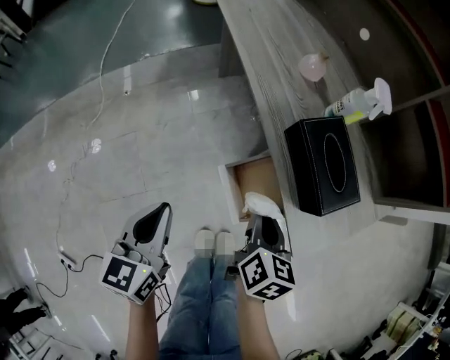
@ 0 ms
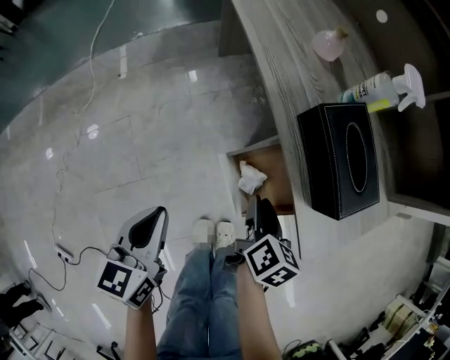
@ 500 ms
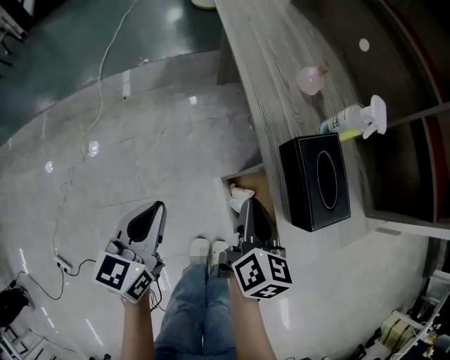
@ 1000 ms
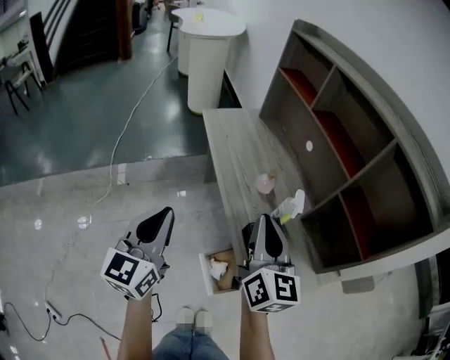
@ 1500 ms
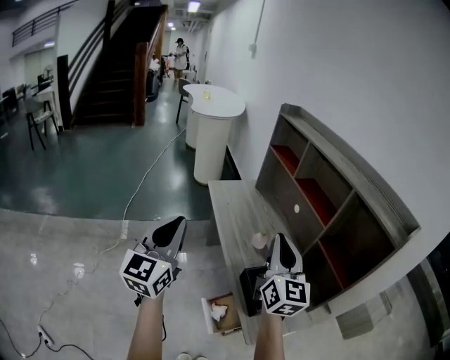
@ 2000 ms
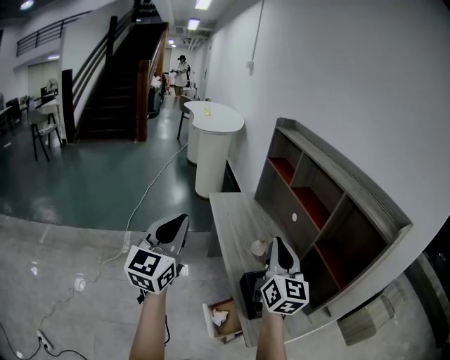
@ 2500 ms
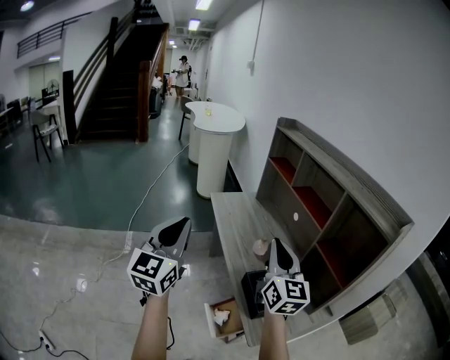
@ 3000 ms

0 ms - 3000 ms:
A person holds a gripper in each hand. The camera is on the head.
0 ms - 1500 ms: The right gripper goes roughly 35 cm upward, tilts its fingers about 30 degrees upward, and opens, then closes again. The left gripper is displaced upward and forward by approximately 30 cm, and swivels some 30 degrees.
1500 ms - 3000 ms: The right gripper heads upward and backward, covering roughly 15 cm. Meanwhile the left gripper goes about 20 cm upward.

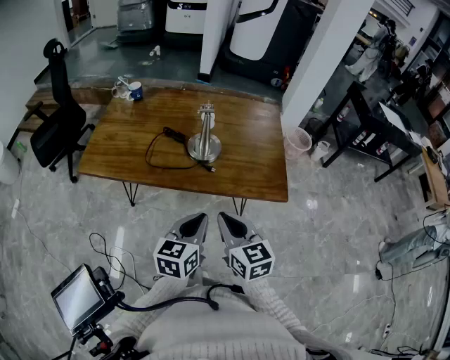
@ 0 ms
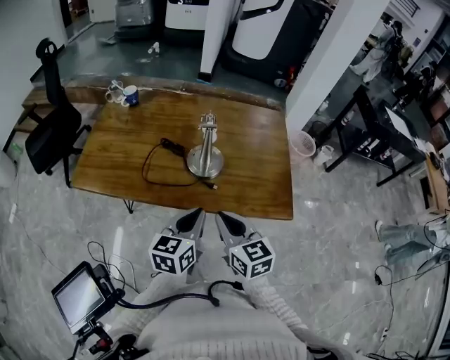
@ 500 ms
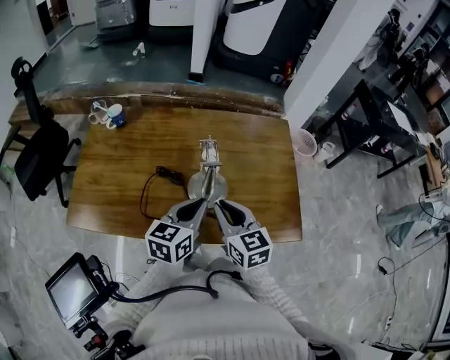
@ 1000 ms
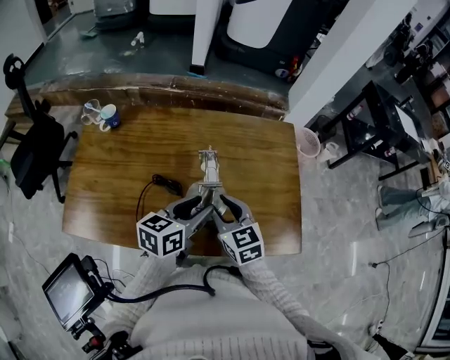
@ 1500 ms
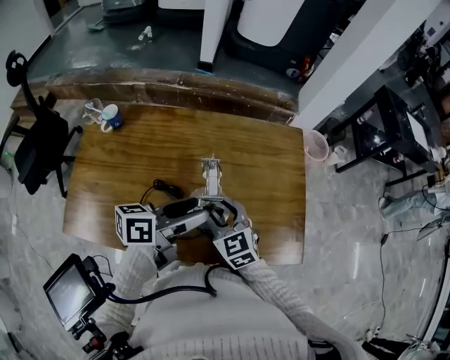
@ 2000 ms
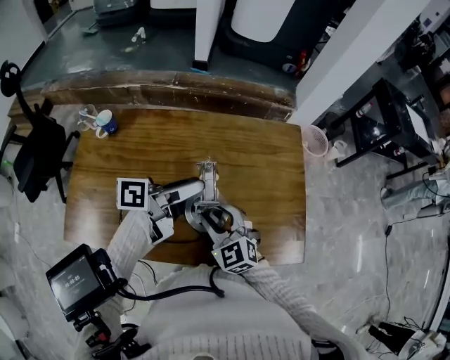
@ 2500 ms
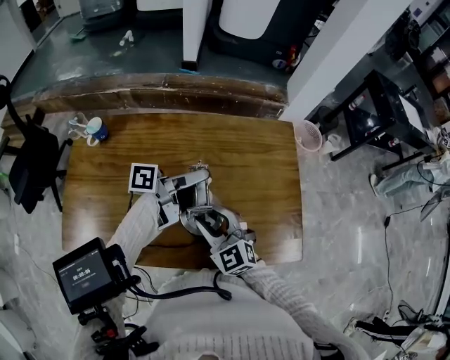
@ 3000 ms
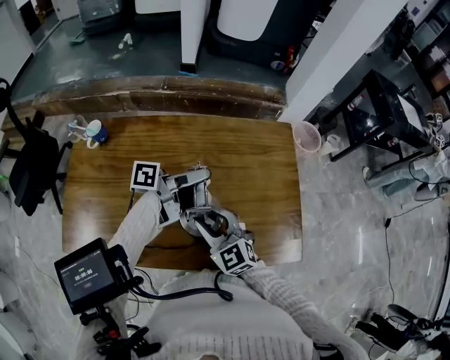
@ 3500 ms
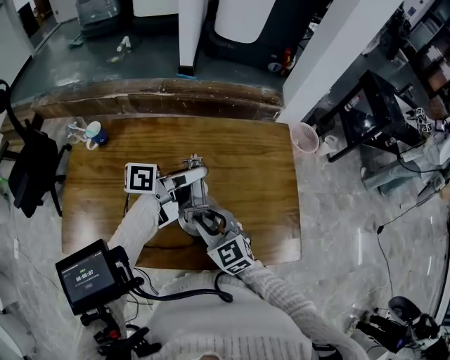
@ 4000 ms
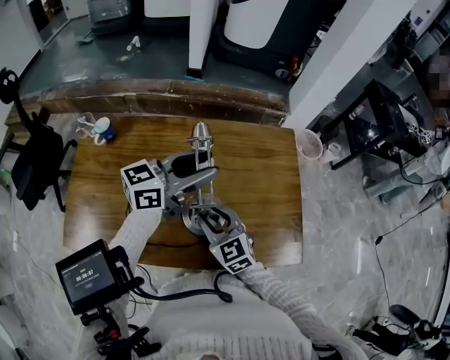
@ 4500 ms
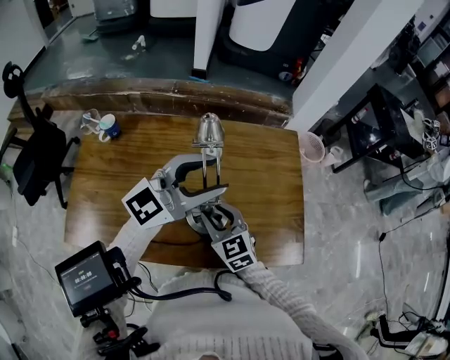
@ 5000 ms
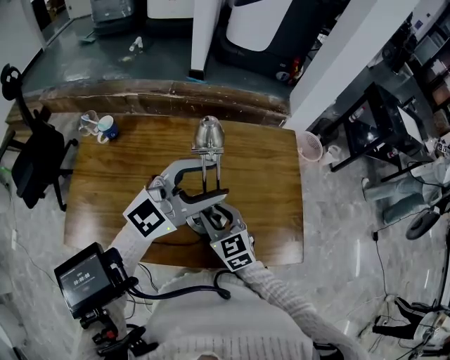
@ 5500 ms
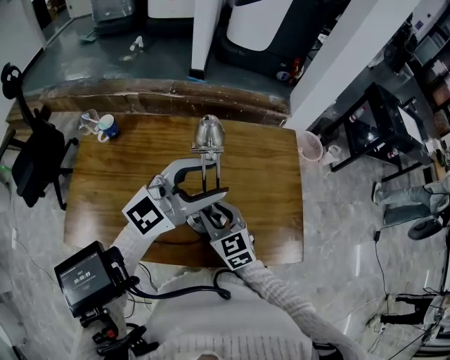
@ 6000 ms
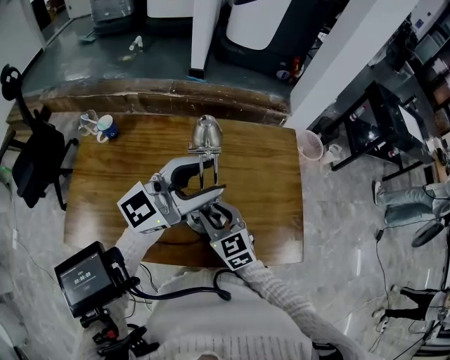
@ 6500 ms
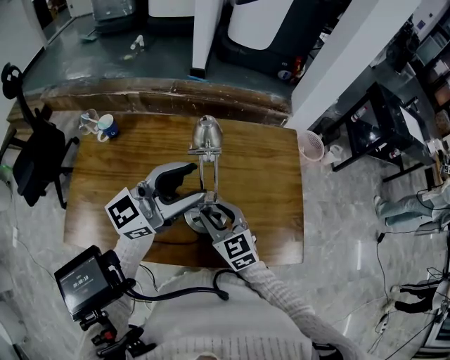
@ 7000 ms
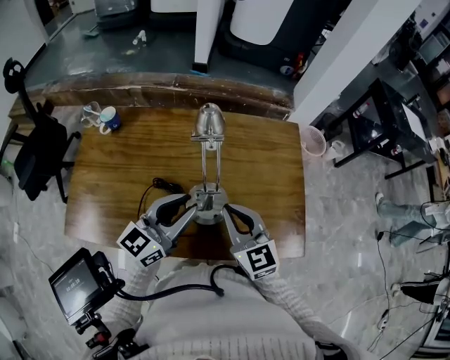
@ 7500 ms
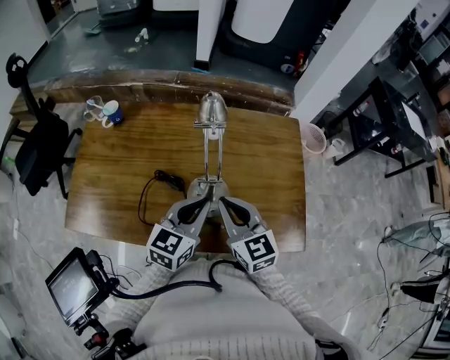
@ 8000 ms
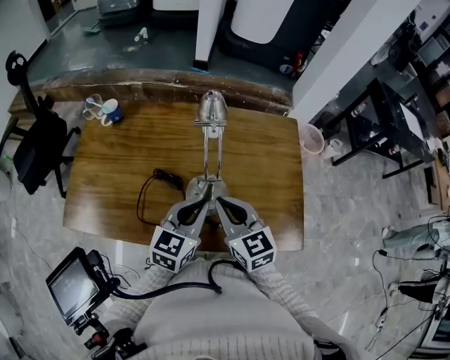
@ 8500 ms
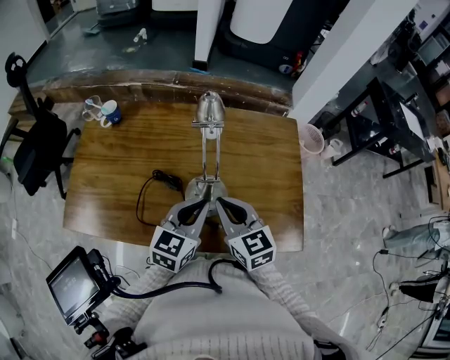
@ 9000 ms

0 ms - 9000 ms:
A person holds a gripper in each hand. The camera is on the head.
0 ms - 2000 ms: The grippers both shift forward by some 30 cm. The left gripper changes its angle by approximately 40 degrees, and opens. Meanwhile the right gripper turns by about 20 degrees, and opens its fingers.
2000 ms - 4500 ms: The left gripper heads forward and upward, covering roughly 15 cm, and turns by about 30 degrees.
4500 ms - 7000 ms: The left gripper moves backward, roughly 10 cm, and changes its angle by about 20 degrees.
7000 ms - 9000 ms: The left gripper is displaced downward and backward by about 15 cm, tilts its fingers approximately 30 degrees downward, and closes up. The right gripper moves some 5 cm, and closes.

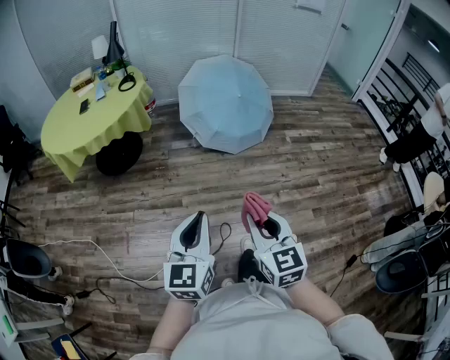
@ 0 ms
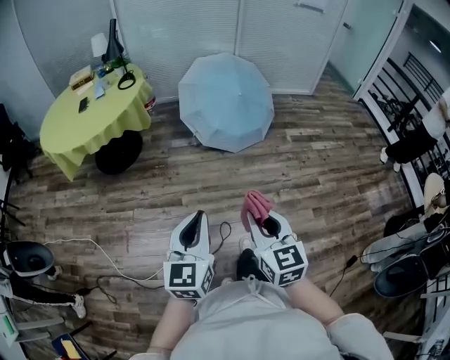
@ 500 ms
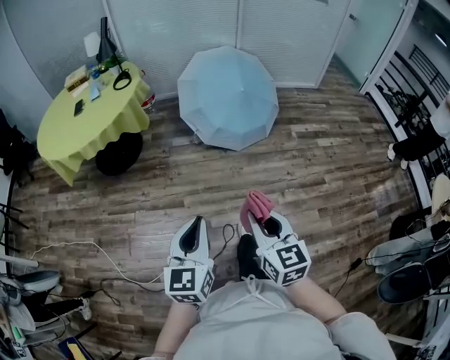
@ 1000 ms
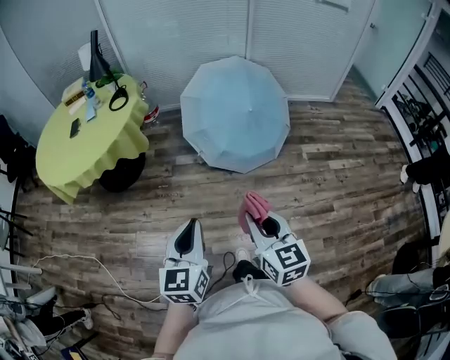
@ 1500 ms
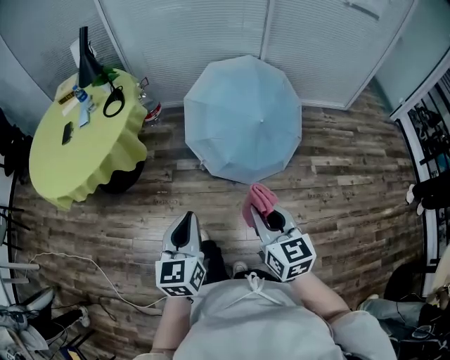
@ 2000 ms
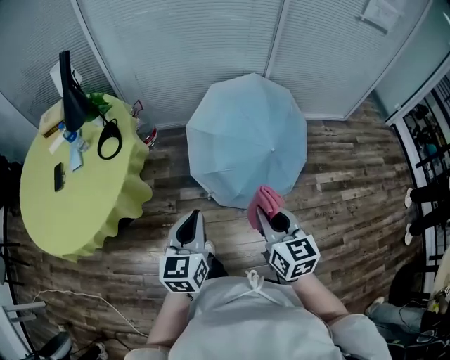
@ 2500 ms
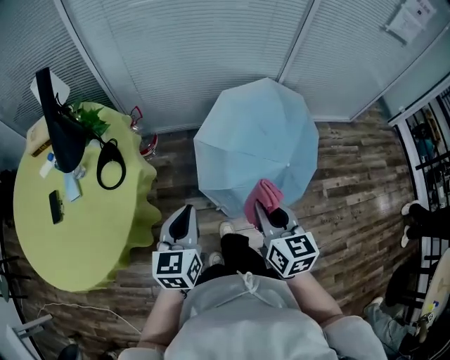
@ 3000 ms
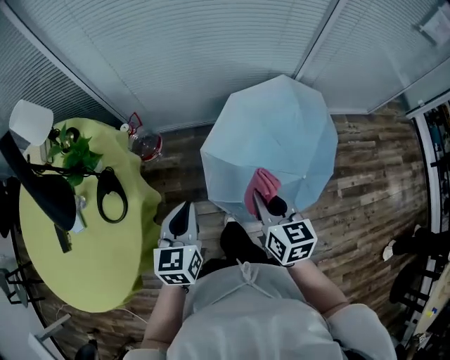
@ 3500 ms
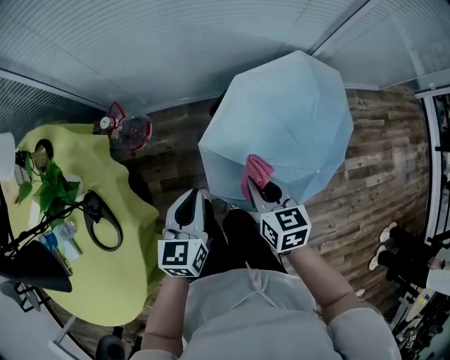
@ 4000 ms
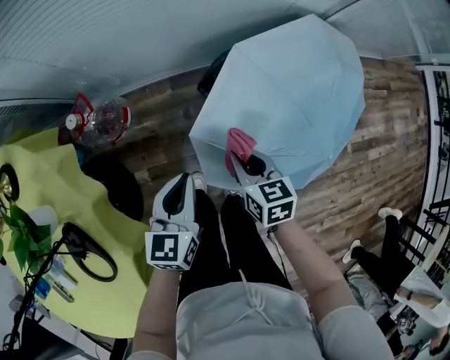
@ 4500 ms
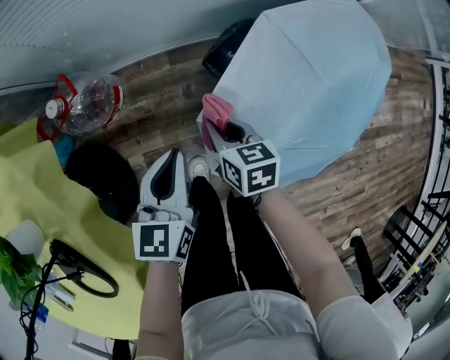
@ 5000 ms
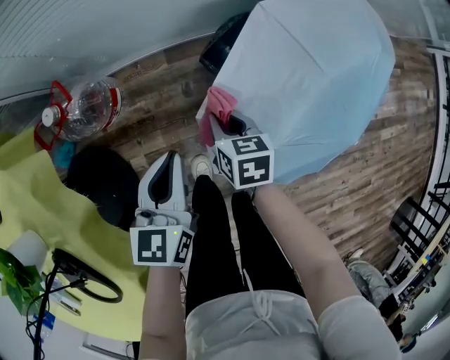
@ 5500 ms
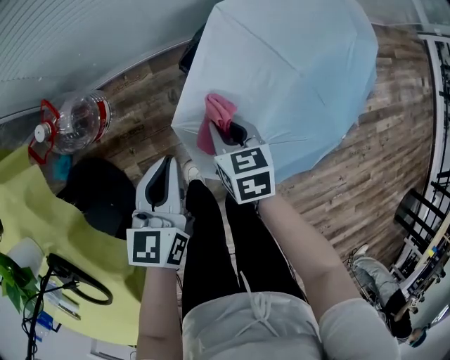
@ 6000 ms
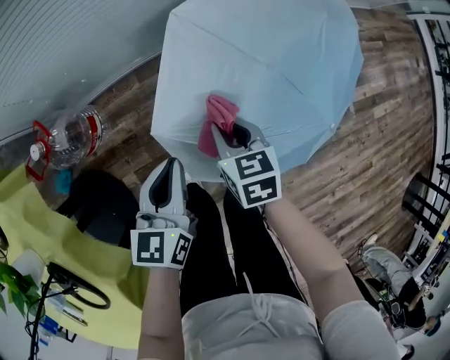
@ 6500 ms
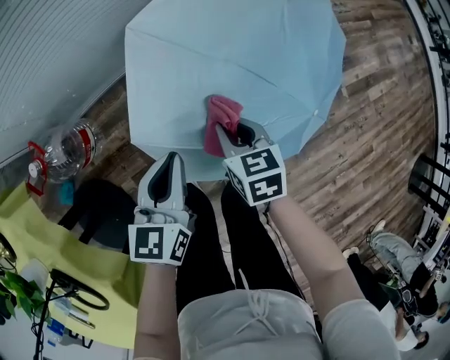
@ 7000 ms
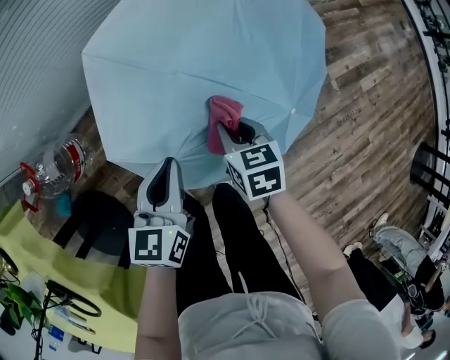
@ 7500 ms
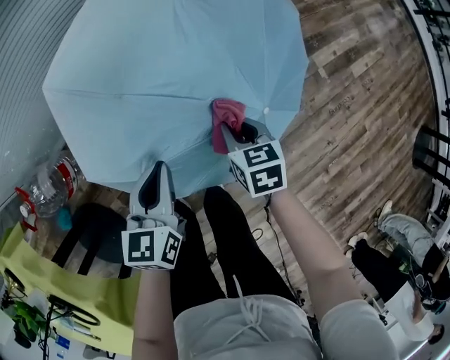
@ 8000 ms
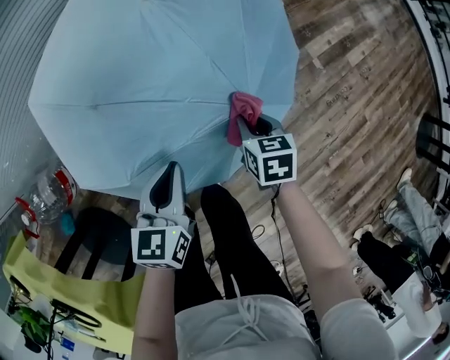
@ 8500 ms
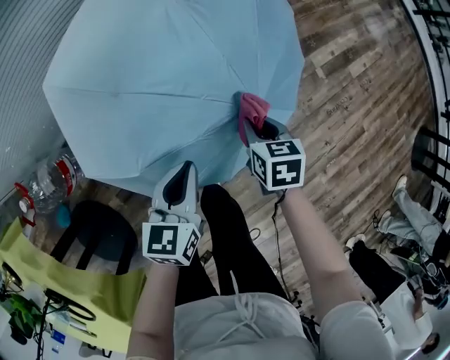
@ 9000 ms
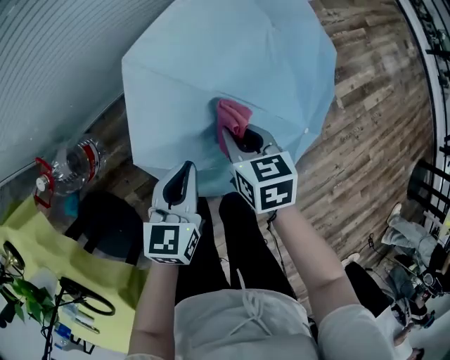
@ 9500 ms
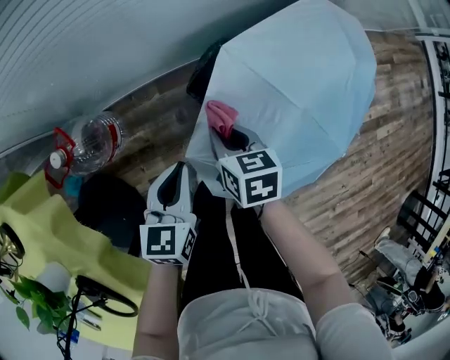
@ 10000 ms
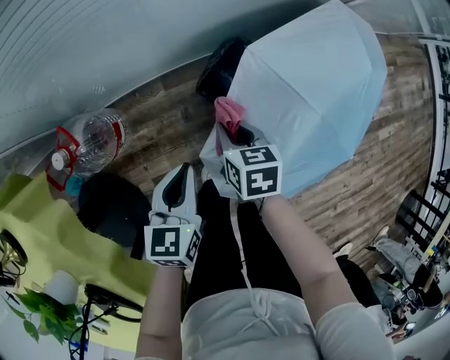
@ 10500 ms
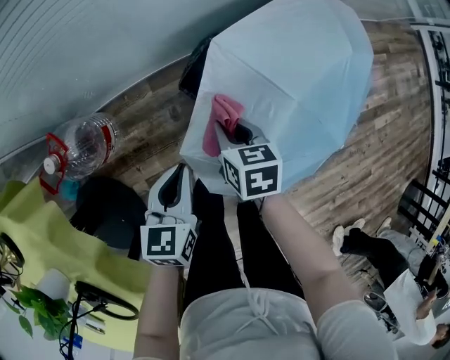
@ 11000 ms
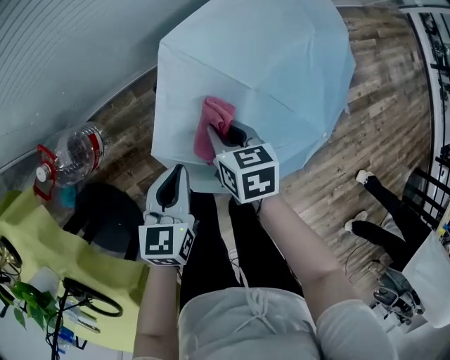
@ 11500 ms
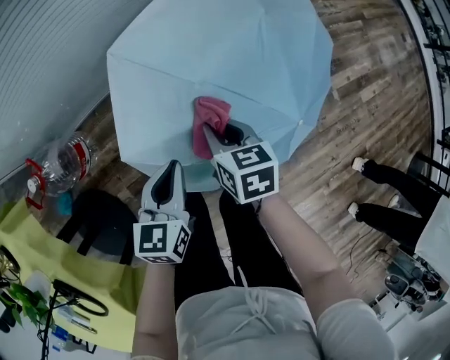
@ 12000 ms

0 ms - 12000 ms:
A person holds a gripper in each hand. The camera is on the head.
0 ms - 2000 ms: The pair of grippers is taken forward, roughly 50 cm.
2000 ms - 4000 ms: The two grippers travel together, forward, about 80 cm. The right gripper rotates roughly 30 degrees. Meanwhile the left gripper rotates some 20 degrees.
4000 ms - 6000 ms: The grippers both shift downward and forward by approximately 25 cm.
6000 ms - 8000 ms: Both grippers move to the right, approximately 30 cm.
8000 ms - 10000 ms: The left gripper shifts by about 30 cm; the right gripper ends up roughly 40 cm from where it was.
10000 ms - 12000 ms: Both grippers move to the right, roughly 20 cm.

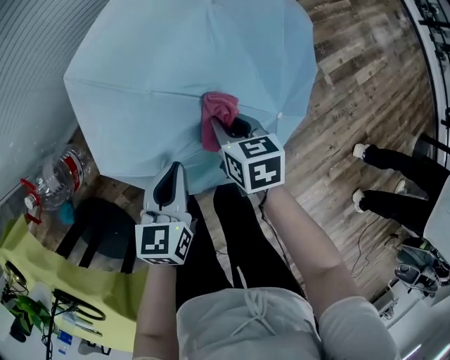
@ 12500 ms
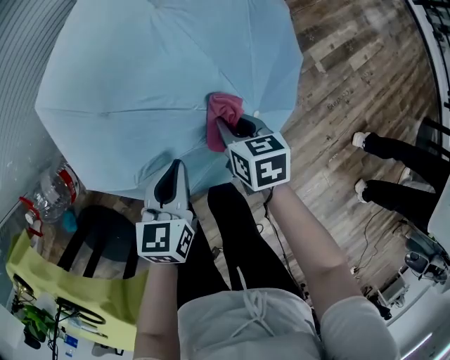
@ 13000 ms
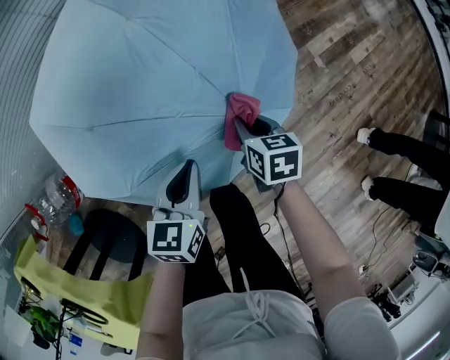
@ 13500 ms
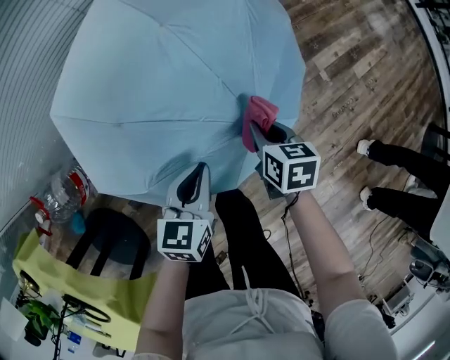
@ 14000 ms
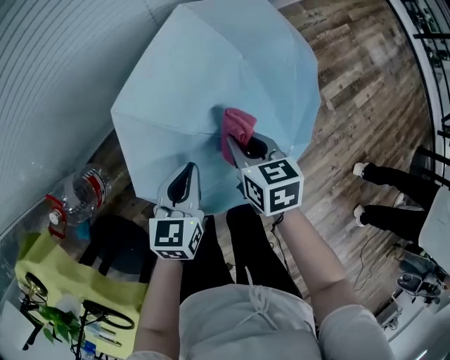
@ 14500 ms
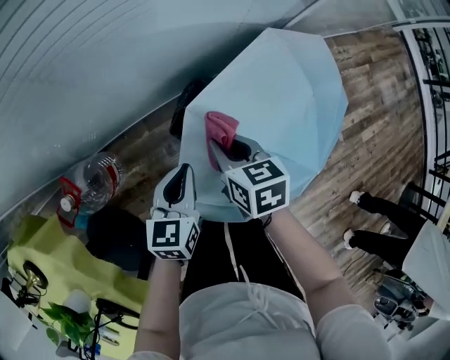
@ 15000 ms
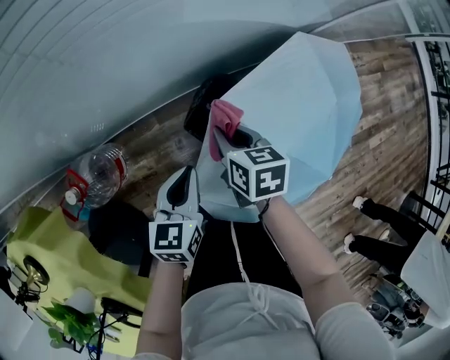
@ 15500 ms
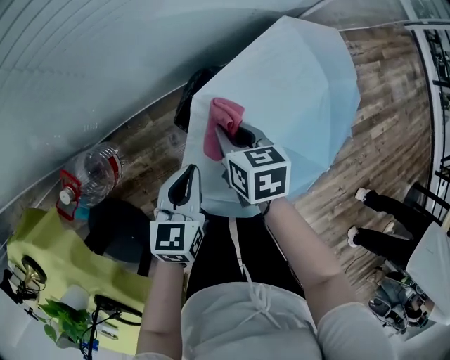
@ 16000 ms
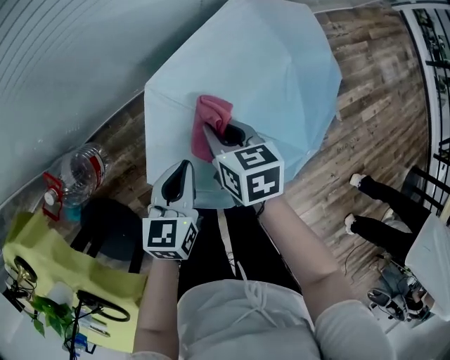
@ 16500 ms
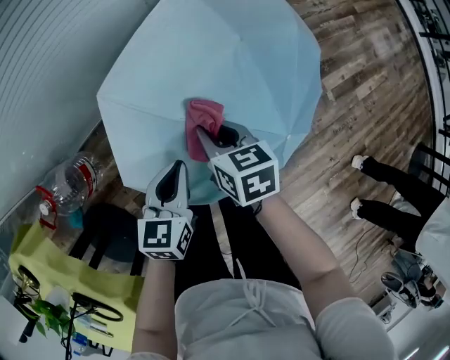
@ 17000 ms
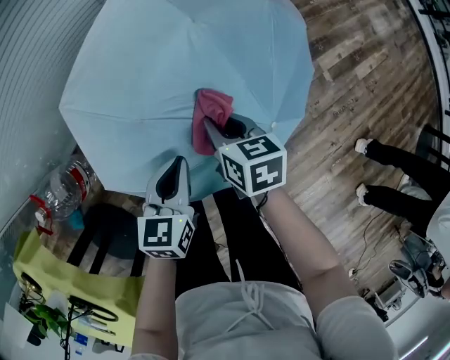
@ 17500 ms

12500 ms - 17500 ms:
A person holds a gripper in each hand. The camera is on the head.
12500 ms - 15000 ms: The left gripper goes roughly 25 cm to the left and forward. The right gripper moves to the left, forward and upward, about 30 cm.
15000 ms - 17500 ms: The grippers both shift to the right and backward by roughly 30 cm.
